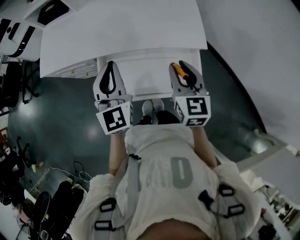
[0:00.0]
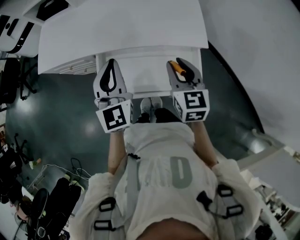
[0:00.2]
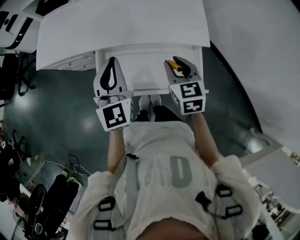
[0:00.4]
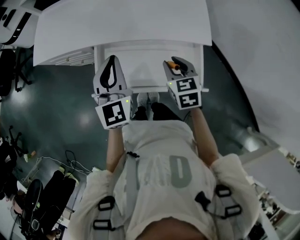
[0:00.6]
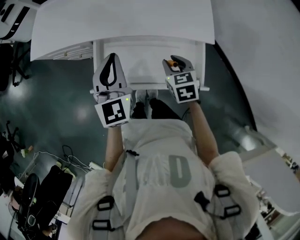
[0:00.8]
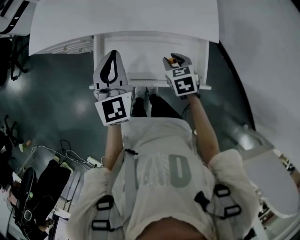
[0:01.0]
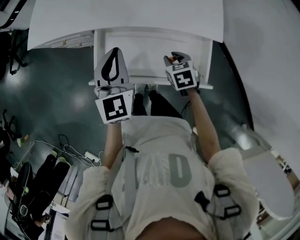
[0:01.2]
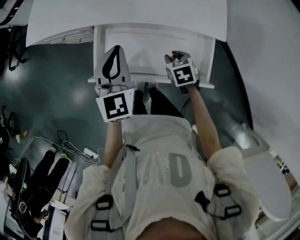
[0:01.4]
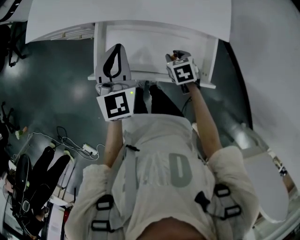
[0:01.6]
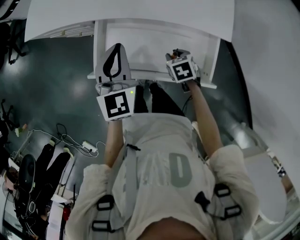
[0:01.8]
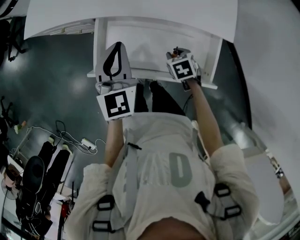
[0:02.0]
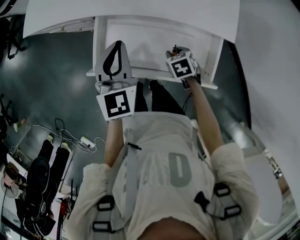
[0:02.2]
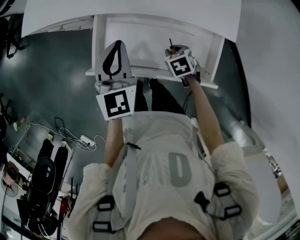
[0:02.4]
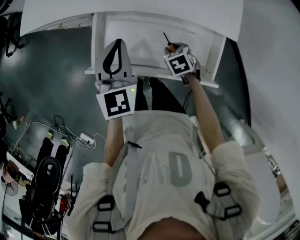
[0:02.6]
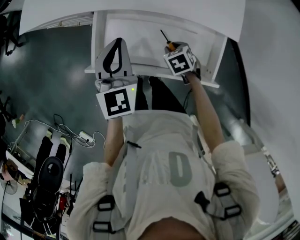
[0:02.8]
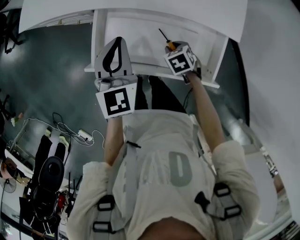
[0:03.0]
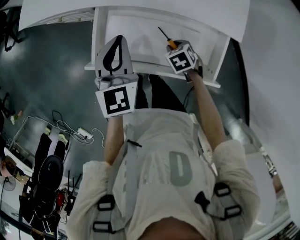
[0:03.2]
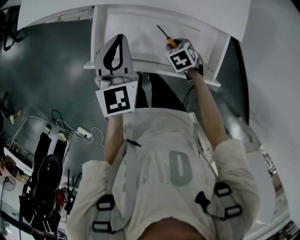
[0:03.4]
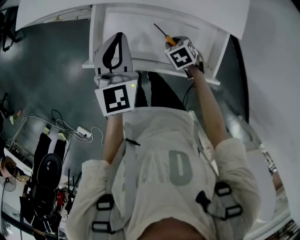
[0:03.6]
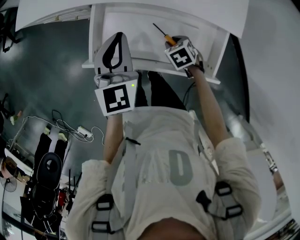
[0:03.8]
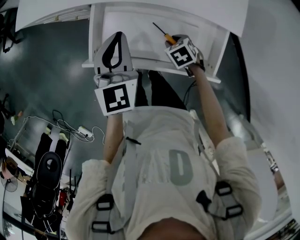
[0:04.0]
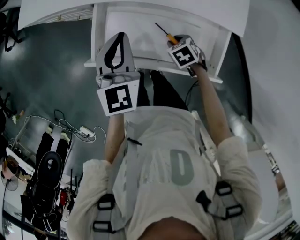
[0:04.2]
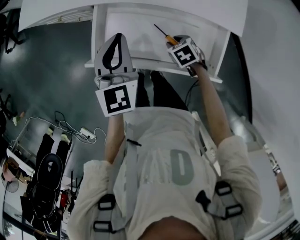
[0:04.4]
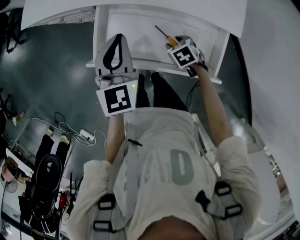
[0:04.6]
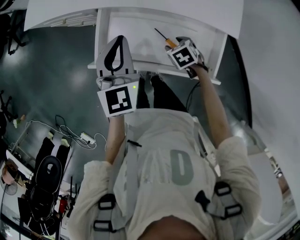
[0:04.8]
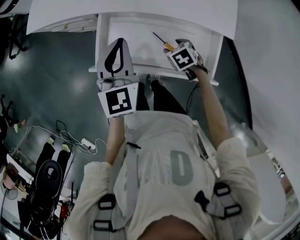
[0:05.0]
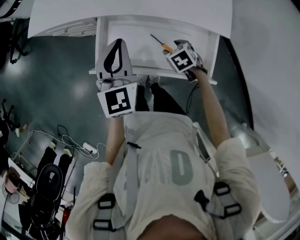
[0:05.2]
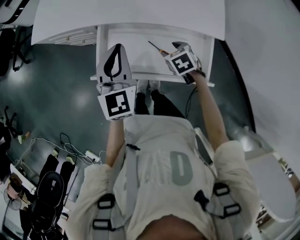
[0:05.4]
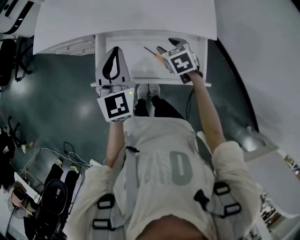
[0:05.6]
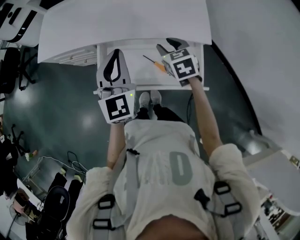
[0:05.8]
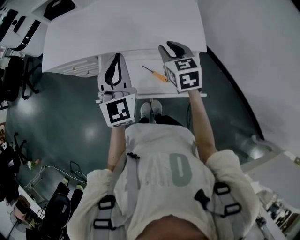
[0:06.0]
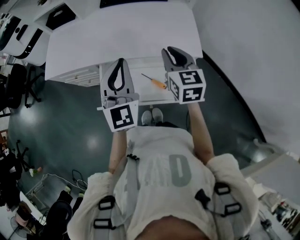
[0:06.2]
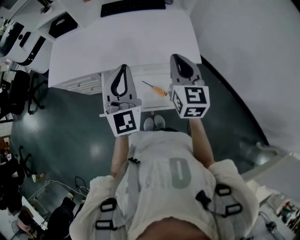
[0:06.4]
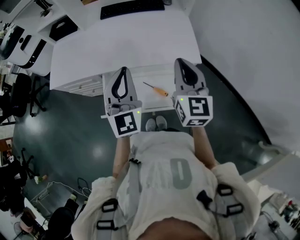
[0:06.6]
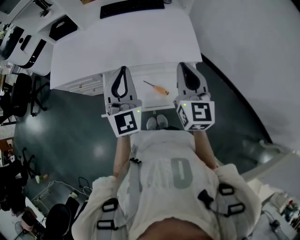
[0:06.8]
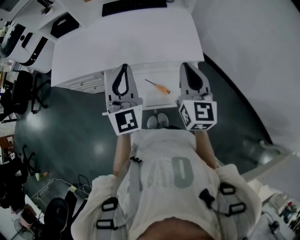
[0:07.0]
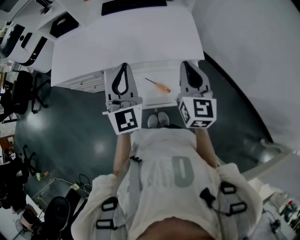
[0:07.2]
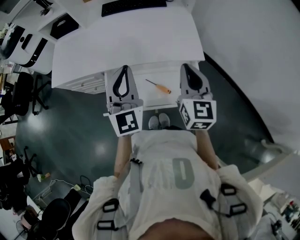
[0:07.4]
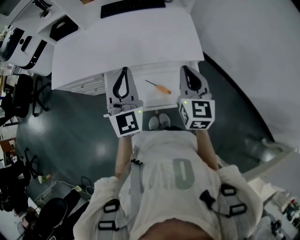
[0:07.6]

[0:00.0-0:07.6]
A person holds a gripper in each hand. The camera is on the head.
0:00.0 to 0:01.6: The right gripper heads downward, covering about 25 cm, and tips its fingers downward by approximately 50 degrees. Meanwhile the left gripper moves downward, approximately 10 cm.
0:01.6 to 0:03.0: The right gripper shifts by approximately 5 cm.
0:03.0 to 0:04.6: The grippers make only small movements.
0:04.6 to 0:06.0: The left gripper travels upward by about 10 cm, and turns by about 20 degrees; the right gripper is displaced upward by about 25 cm, and tilts its fingers about 40 degrees upward.
0:06.0 to 0:07.6: The right gripper shifts roughly 15 cm backward, upward and to the right, swivels some 30 degrees, and closes.

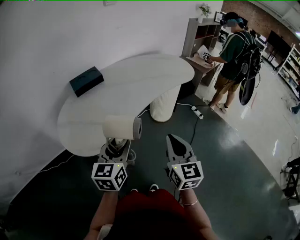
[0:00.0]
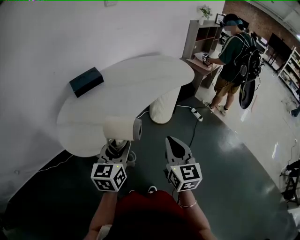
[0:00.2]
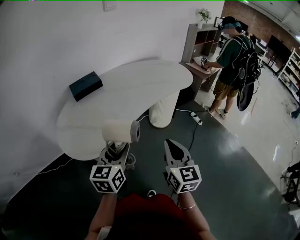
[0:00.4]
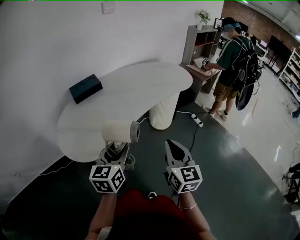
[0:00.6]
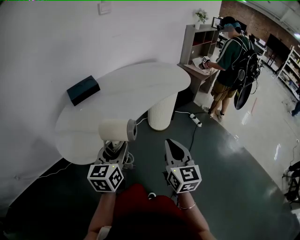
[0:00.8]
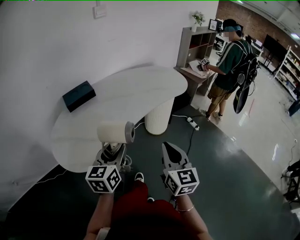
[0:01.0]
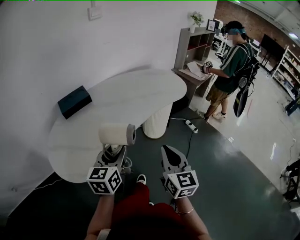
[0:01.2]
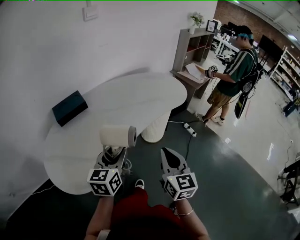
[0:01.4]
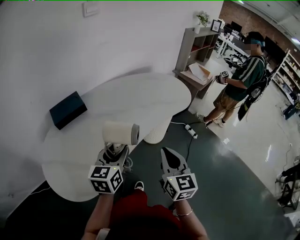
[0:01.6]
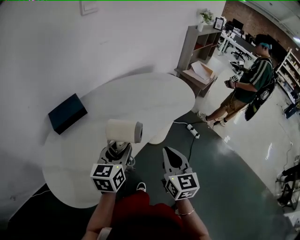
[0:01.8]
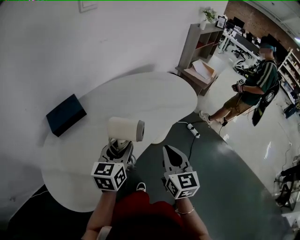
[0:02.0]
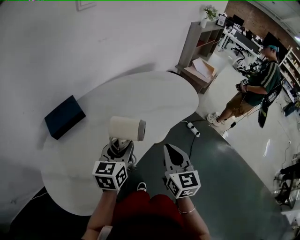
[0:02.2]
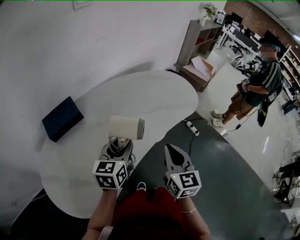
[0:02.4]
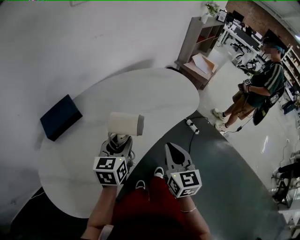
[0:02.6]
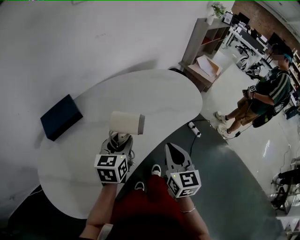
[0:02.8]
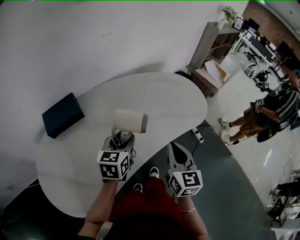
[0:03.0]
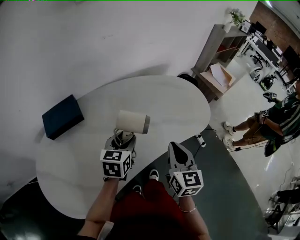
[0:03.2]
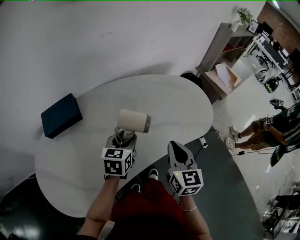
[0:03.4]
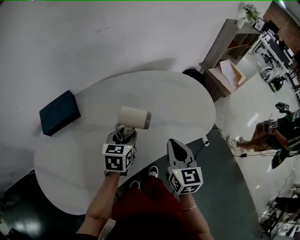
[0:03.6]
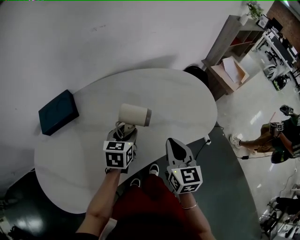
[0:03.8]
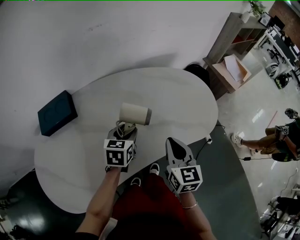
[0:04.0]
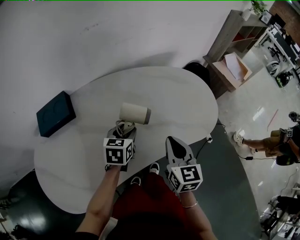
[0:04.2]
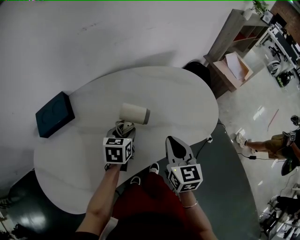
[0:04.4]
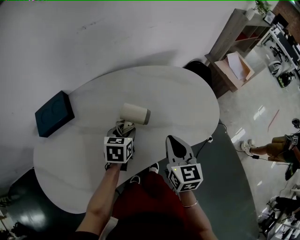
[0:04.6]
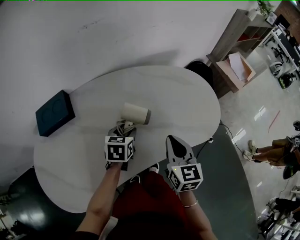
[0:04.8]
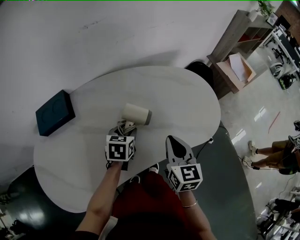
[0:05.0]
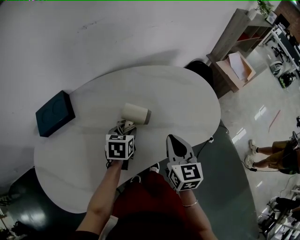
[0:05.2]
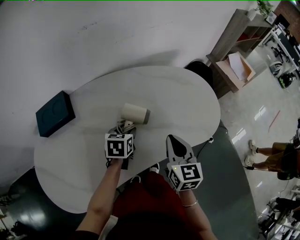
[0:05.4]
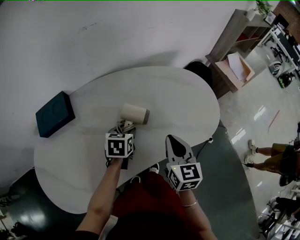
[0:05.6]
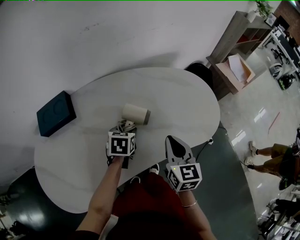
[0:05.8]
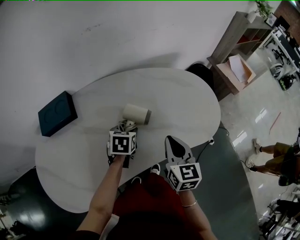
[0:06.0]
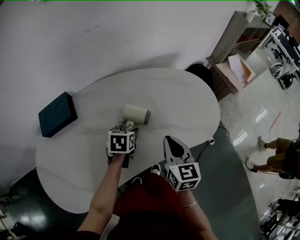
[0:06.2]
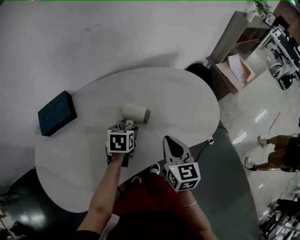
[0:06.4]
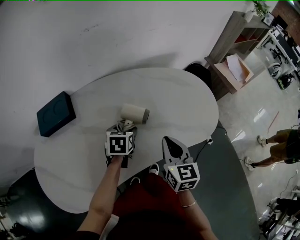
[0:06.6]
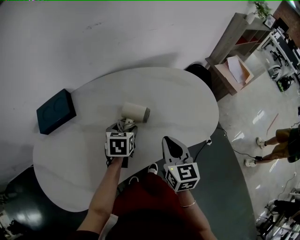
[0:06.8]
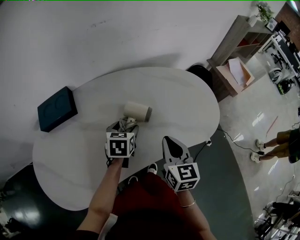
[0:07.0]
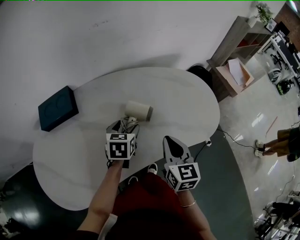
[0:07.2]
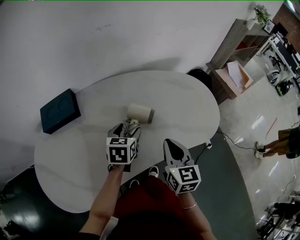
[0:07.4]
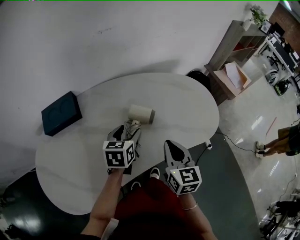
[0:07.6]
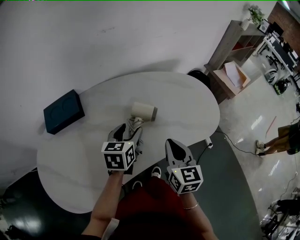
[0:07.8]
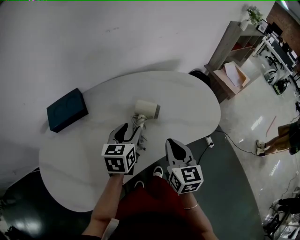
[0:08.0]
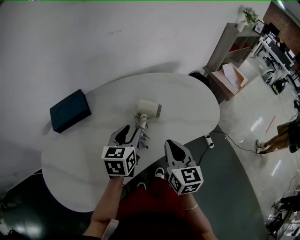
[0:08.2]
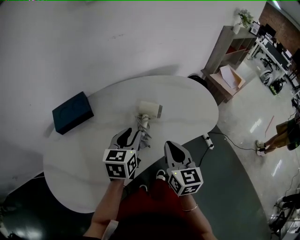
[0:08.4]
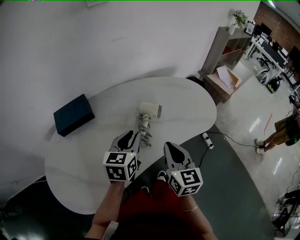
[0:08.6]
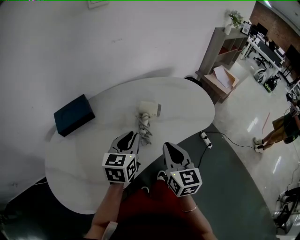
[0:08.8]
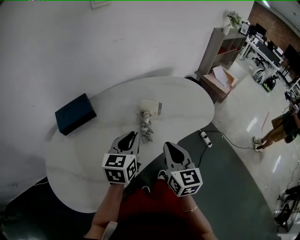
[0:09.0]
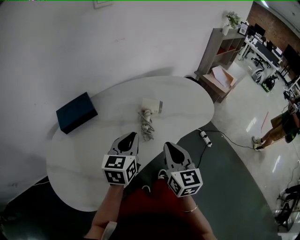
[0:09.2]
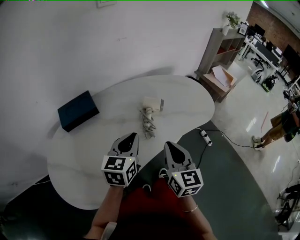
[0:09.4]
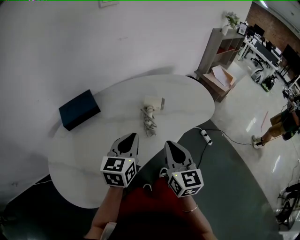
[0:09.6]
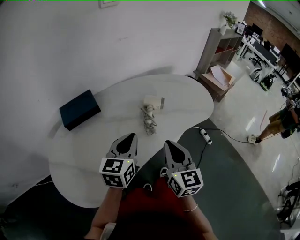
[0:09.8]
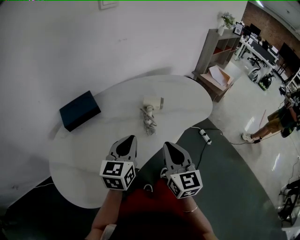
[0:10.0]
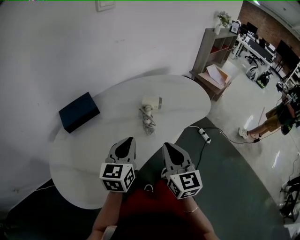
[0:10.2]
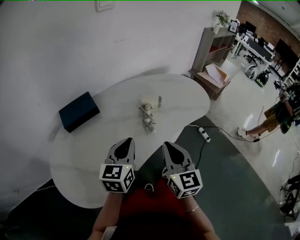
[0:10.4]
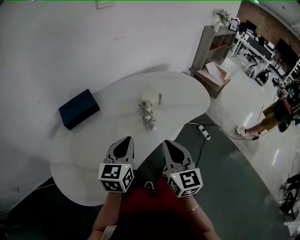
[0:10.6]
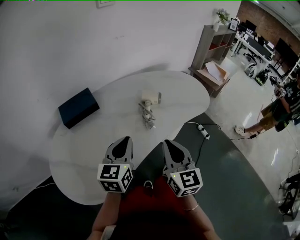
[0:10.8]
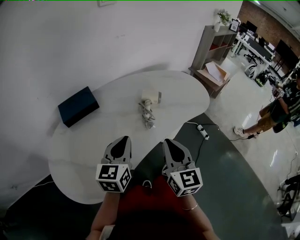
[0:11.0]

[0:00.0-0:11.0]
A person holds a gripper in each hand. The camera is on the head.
0:00.0 to 0:01.6: Both grippers move forward, some 20 cm.
0:01.6 to 0:03.2: The grippers both shift forward by about 20 cm.
0:03.2 to 0:04.8: The right gripper goes some 10 cm forward and downward; the left gripper heads downward and forward, covering roughly 15 cm.
0:04.8 to 0:06.2: The grippers stay close to where they were, moving slightly.
0:06.2 to 0:07.8: The right gripper ends up approximately 5 cm from where it was. The left gripper moves upward, roughly 10 cm, and swivels about 20 degrees.
0:07.8 to 0:09.4: The right gripper is displaced backward, to the left and upward by some 15 cm. Meanwhile the left gripper moves backward and upward, some 15 cm, and closes its fingers.
0:09.4 to 0:11.0: Both grippers travel together backward, some 5 cm.

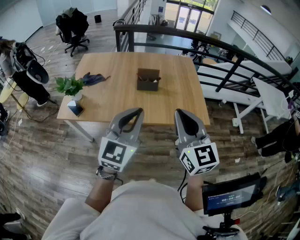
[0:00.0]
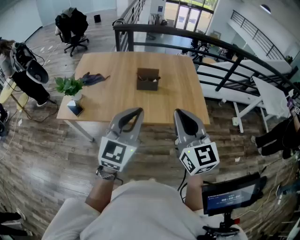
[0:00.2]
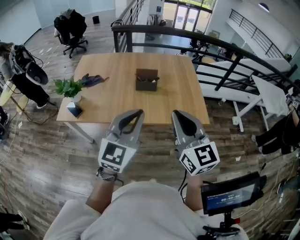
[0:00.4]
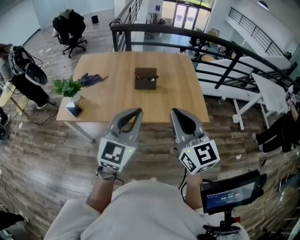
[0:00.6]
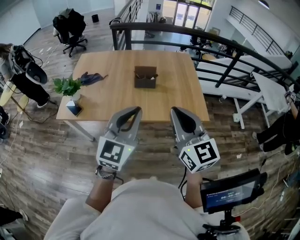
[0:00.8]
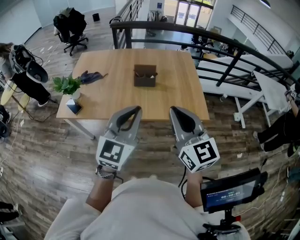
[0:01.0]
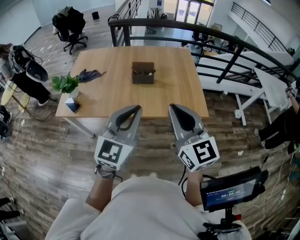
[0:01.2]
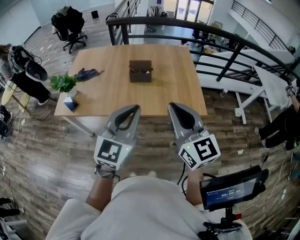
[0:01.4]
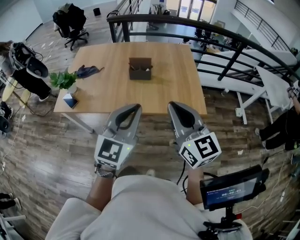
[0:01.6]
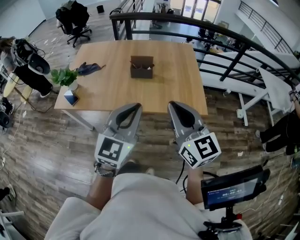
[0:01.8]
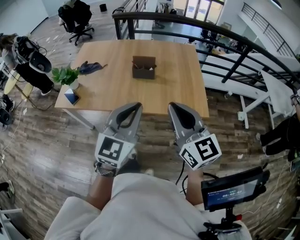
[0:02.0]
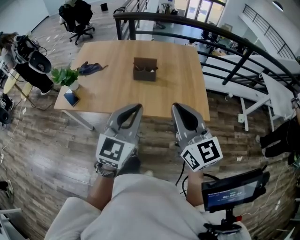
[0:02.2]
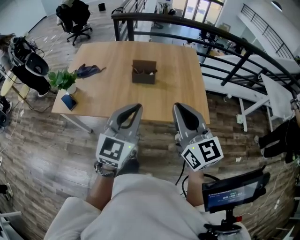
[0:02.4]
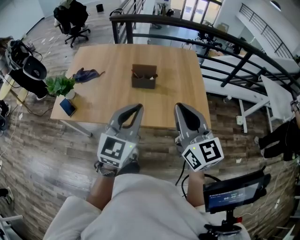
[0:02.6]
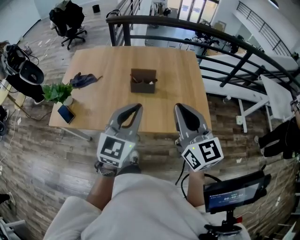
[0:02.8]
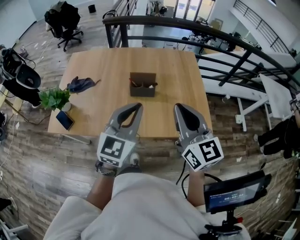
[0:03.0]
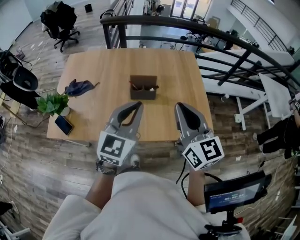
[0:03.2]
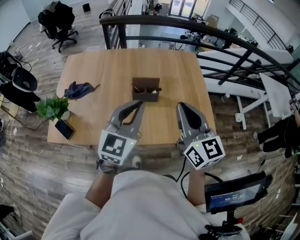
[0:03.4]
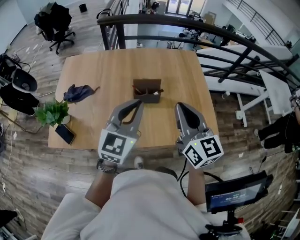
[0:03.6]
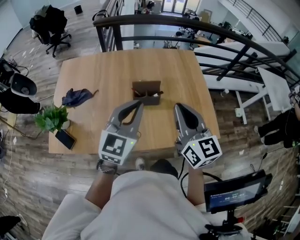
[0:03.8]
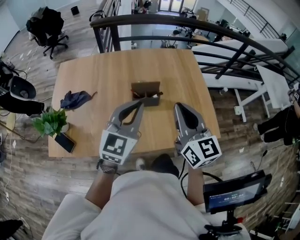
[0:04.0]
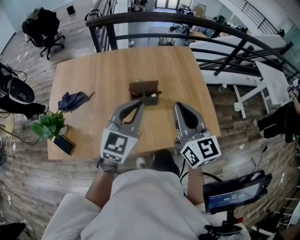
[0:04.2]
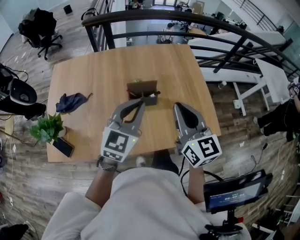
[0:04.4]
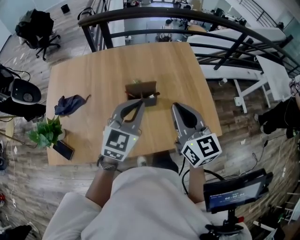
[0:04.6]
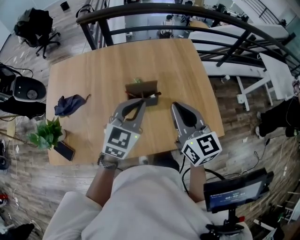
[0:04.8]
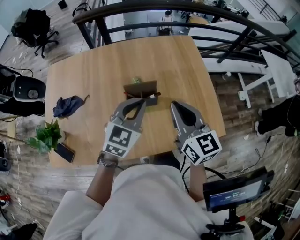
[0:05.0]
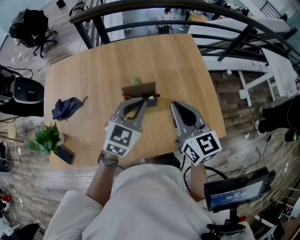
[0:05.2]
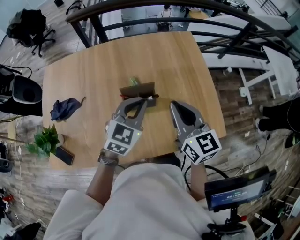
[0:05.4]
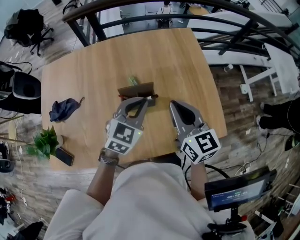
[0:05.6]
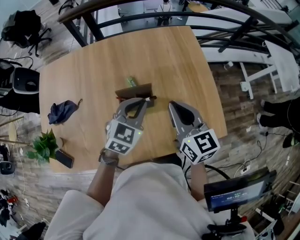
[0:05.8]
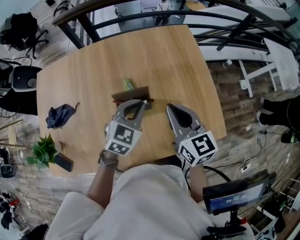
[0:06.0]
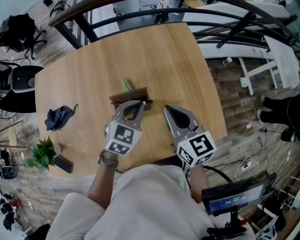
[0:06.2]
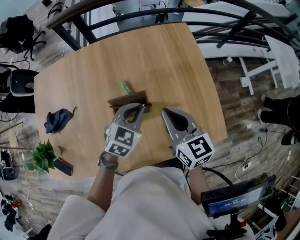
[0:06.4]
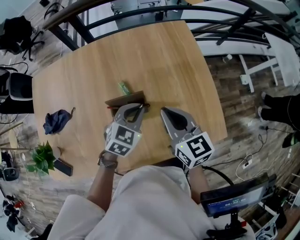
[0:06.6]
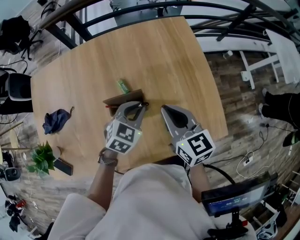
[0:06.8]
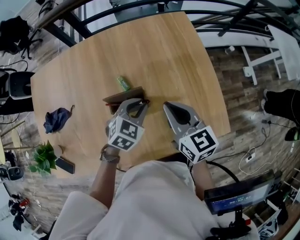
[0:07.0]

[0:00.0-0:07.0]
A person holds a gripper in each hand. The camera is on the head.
0:00.0 to 0:01.4: The grippers make only small movements.
0:01.4 to 0:02.8: The two grippers go about 10 cm forward.
0:02.8 to 0:04.2: Both grippers move forward, about 15 cm.
0:04.2 to 0:05.6: The left gripper travels downward and forward by some 15 cm, and changes its angle by about 20 degrees. The right gripper moves forward and downward, about 10 cm.
0:05.6 to 0:07.0: The right gripper is displaced downward by some 5 cm. The left gripper is displaced downward by some 10 cm.
